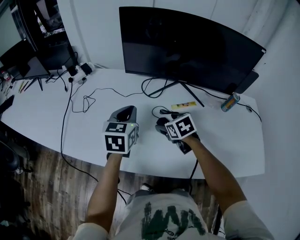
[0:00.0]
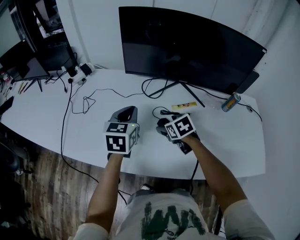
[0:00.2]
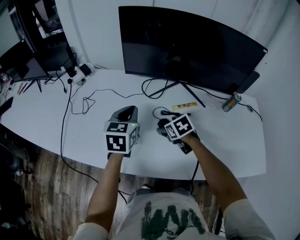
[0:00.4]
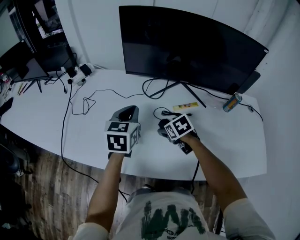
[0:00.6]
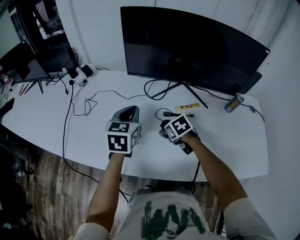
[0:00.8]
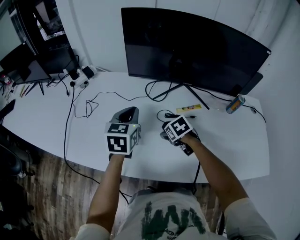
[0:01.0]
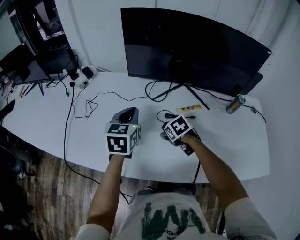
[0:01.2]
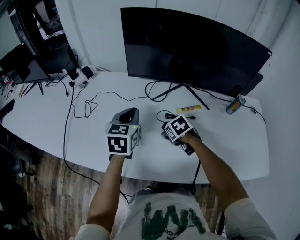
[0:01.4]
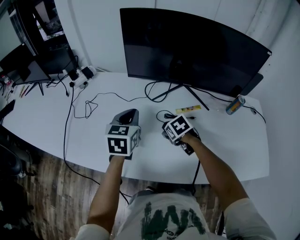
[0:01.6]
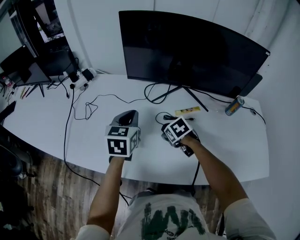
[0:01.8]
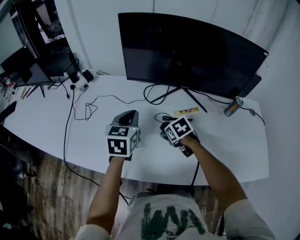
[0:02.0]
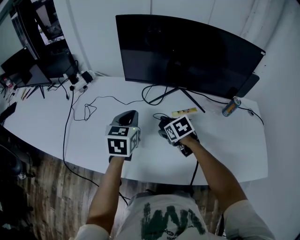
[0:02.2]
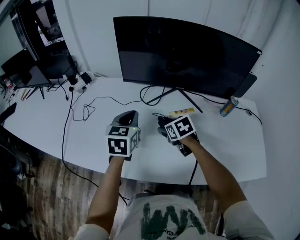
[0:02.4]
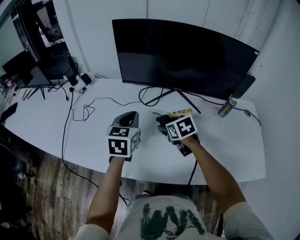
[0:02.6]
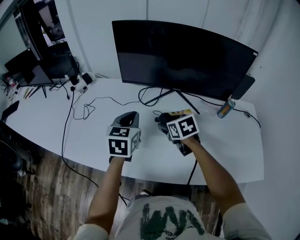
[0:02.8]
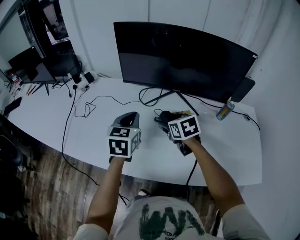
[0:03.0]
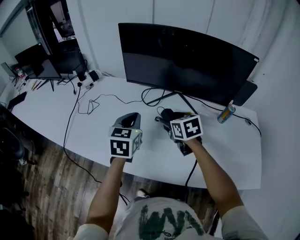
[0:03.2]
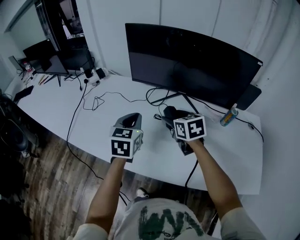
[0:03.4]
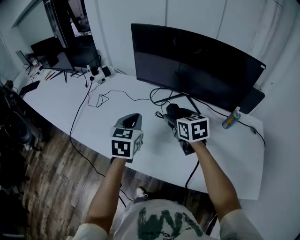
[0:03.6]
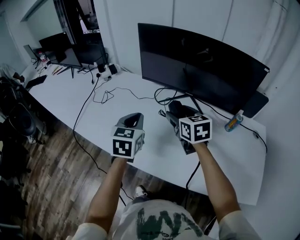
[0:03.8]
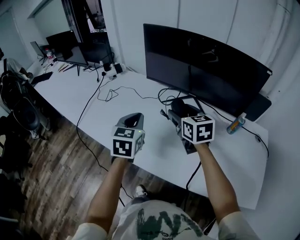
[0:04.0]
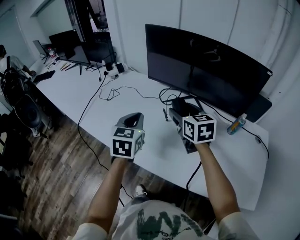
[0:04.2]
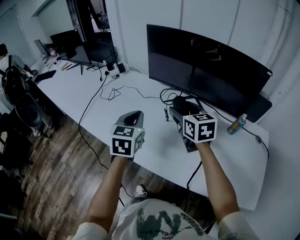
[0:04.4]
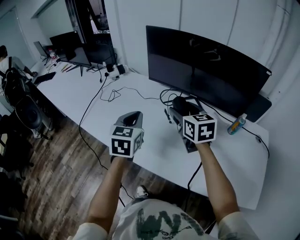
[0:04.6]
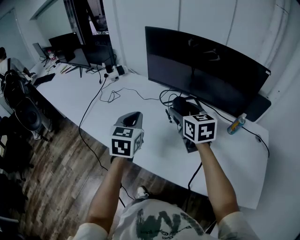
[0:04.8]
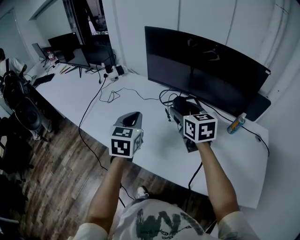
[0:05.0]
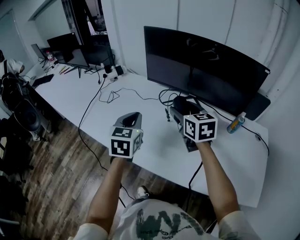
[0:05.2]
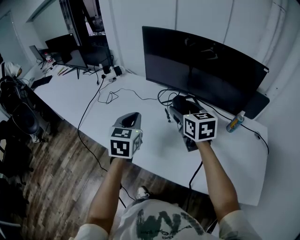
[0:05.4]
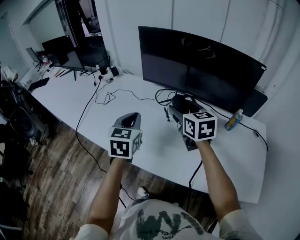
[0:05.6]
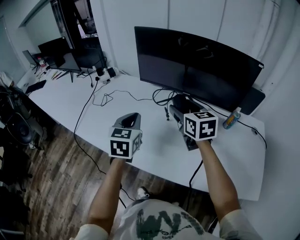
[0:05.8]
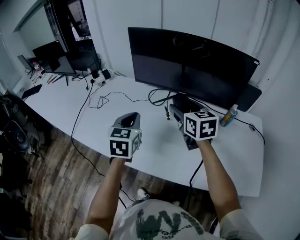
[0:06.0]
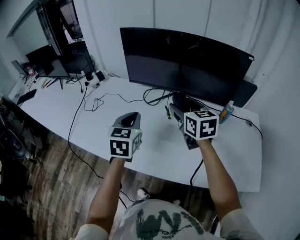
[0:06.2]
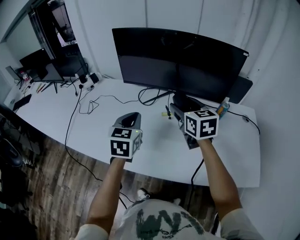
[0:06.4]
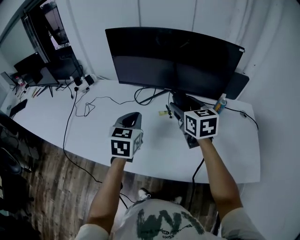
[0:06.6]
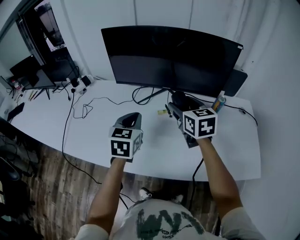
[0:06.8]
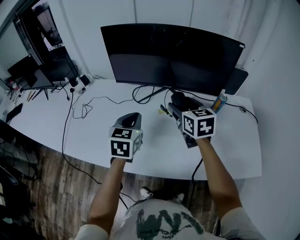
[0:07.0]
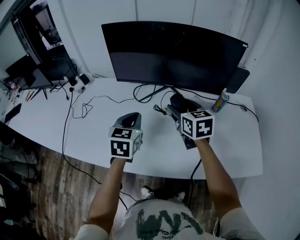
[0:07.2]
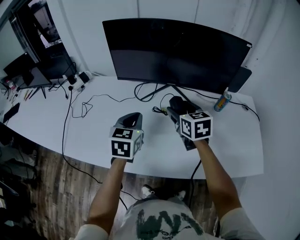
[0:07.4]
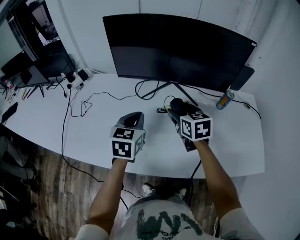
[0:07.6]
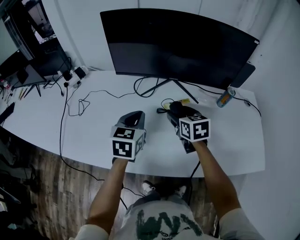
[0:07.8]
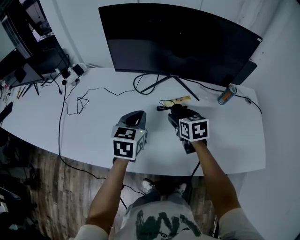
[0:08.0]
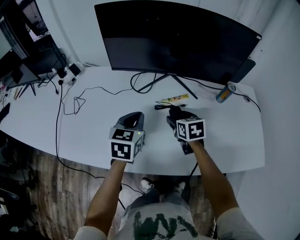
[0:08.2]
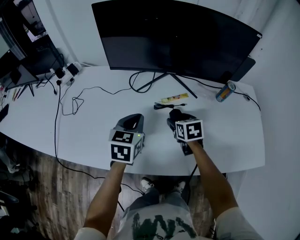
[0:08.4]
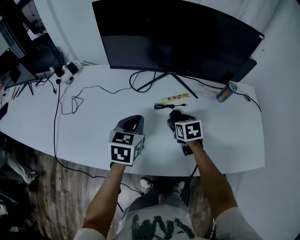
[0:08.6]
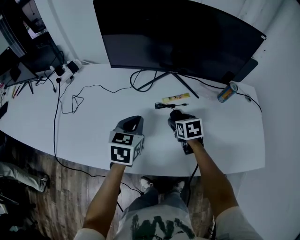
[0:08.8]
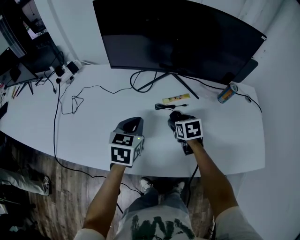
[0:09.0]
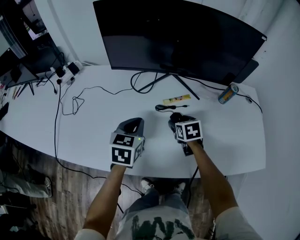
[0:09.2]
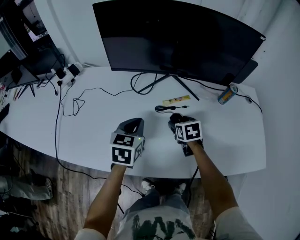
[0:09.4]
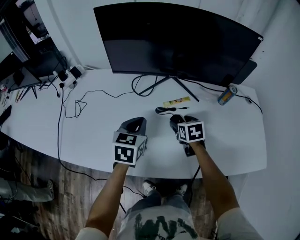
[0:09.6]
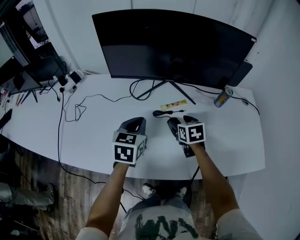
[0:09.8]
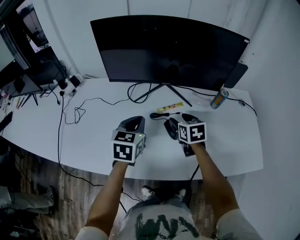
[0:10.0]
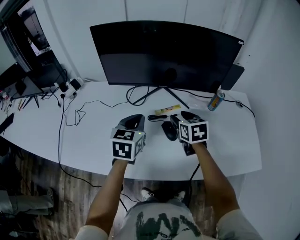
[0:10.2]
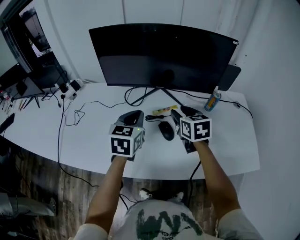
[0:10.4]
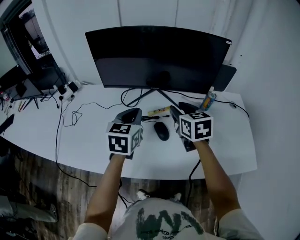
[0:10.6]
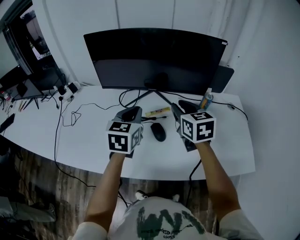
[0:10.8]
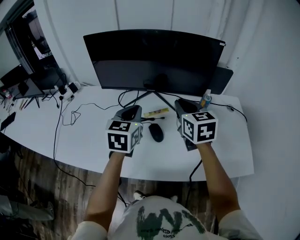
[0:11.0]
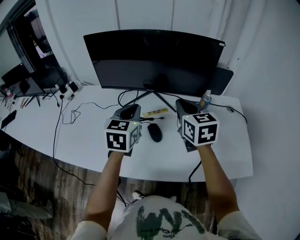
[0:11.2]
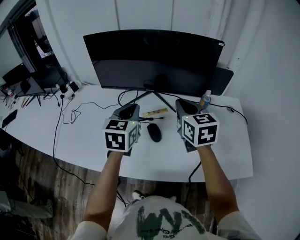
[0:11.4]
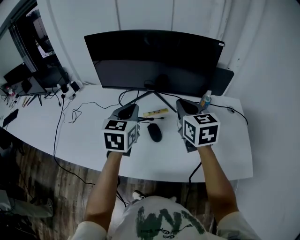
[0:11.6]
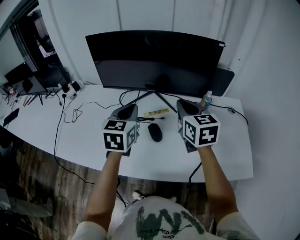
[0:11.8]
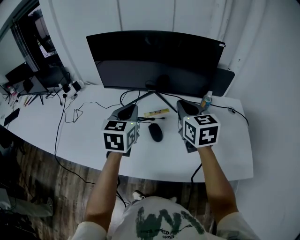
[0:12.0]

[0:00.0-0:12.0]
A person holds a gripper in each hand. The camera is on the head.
0:00.0 to 0:01.6: The right gripper travels downward by about 5 cm.
0:01.6 to 0:03.0: The left gripper shifts by about 10 cm; the right gripper shifts some 15 cm upward, and swivels approximately 30 degrees.
0:03.0 to 0:04.4: The right gripper shifts about 15 cm upward, and turns by roughly 20 degrees, while the left gripper is displaced backward by about 10 cm.
0:04.4 to 0:06.0: The grippers move only a little.
0:06.0 to 0:07.6: The right gripper travels downward by roughly 10 cm. Meanwhile the left gripper heads downward, covering some 5 cm.
0:07.6 to 0:09.0: The left gripper heads downward, covering approximately 5 cm. The right gripper heads downward, covering approximately 15 cm, and turns by roughly 20 degrees.
0:09.0 to 0:10.4: The left gripper heads upward, covering some 10 cm. The right gripper moves upward, about 20 cm, and changes its angle by about 20 degrees.
0:10.4 to 0:12.0: The right gripper travels upward and to the right by about 10 cm, and closes its fingers. Meanwhile the left gripper is displaced upward by approximately 5 cm.

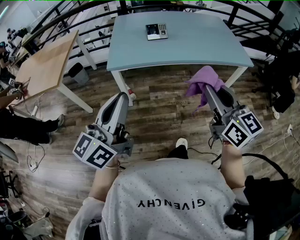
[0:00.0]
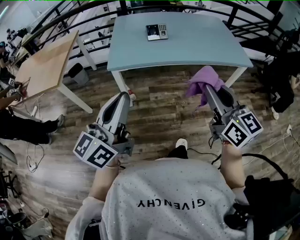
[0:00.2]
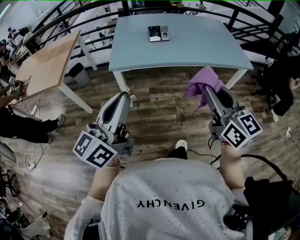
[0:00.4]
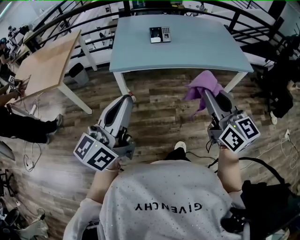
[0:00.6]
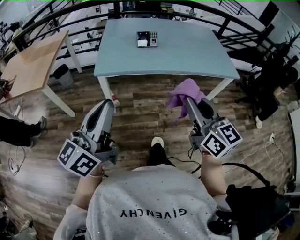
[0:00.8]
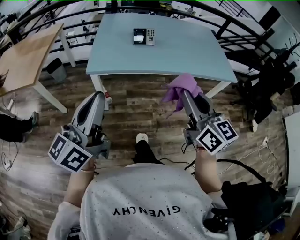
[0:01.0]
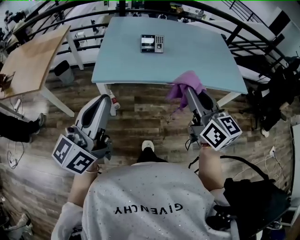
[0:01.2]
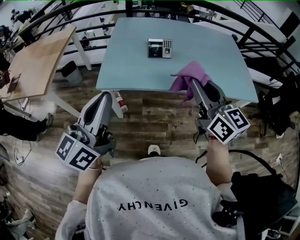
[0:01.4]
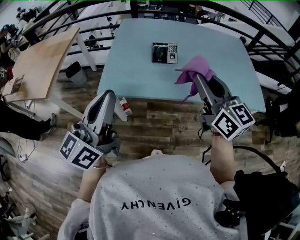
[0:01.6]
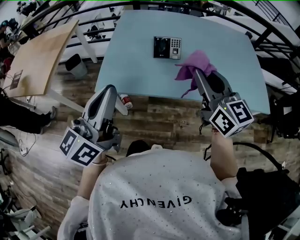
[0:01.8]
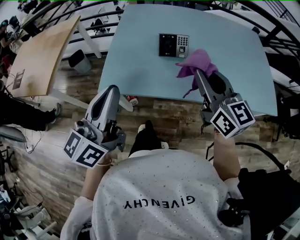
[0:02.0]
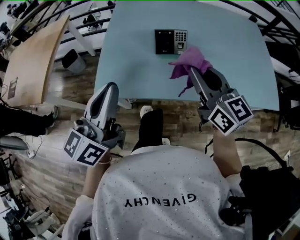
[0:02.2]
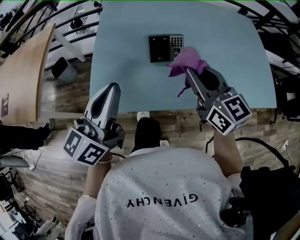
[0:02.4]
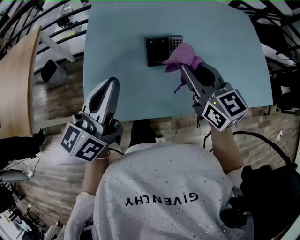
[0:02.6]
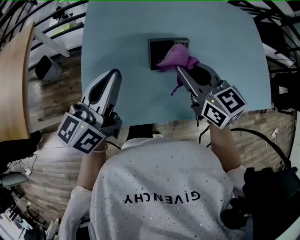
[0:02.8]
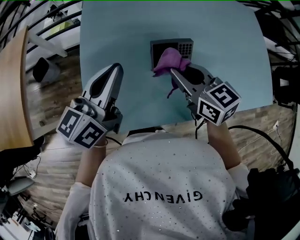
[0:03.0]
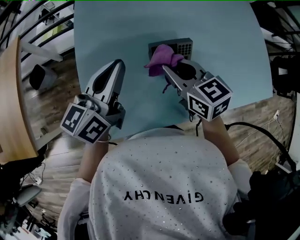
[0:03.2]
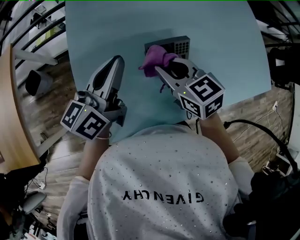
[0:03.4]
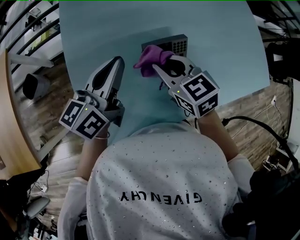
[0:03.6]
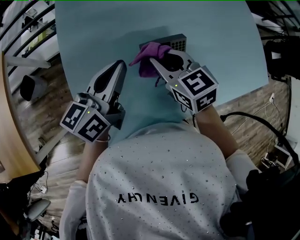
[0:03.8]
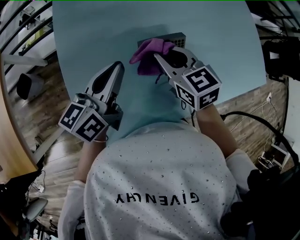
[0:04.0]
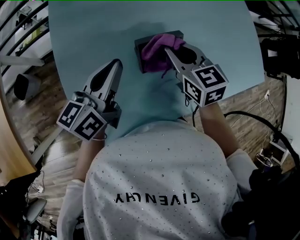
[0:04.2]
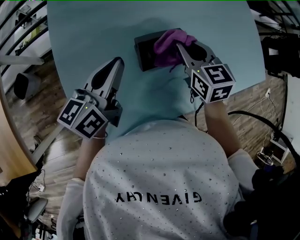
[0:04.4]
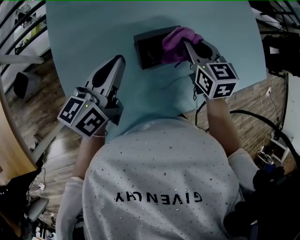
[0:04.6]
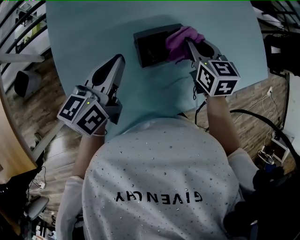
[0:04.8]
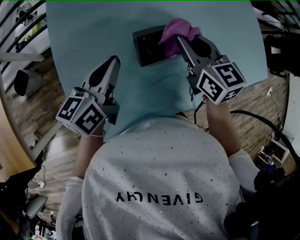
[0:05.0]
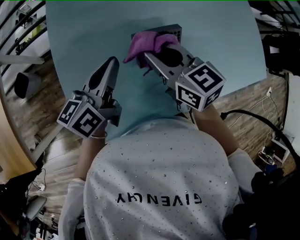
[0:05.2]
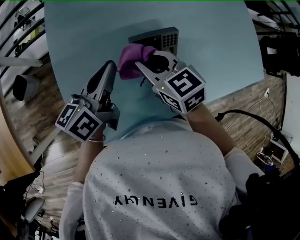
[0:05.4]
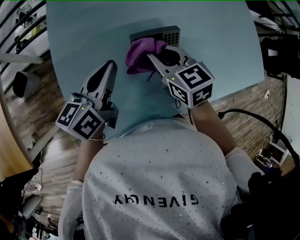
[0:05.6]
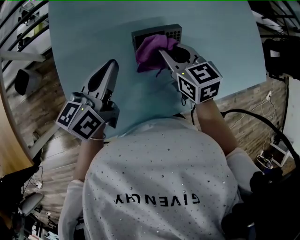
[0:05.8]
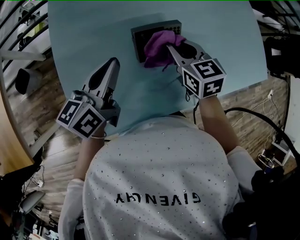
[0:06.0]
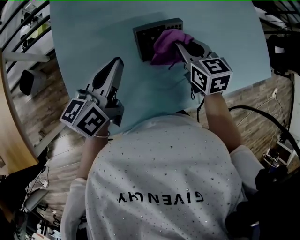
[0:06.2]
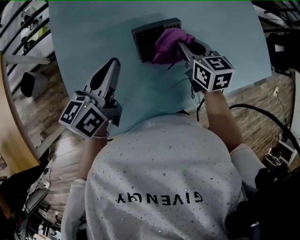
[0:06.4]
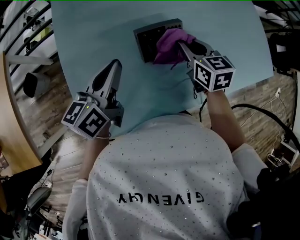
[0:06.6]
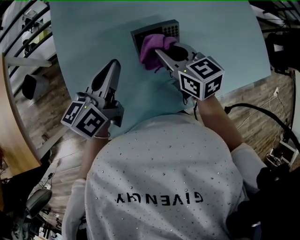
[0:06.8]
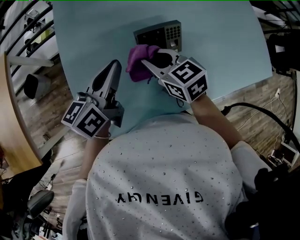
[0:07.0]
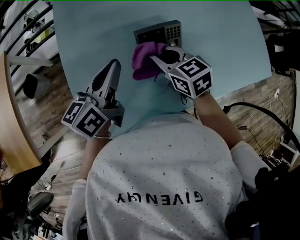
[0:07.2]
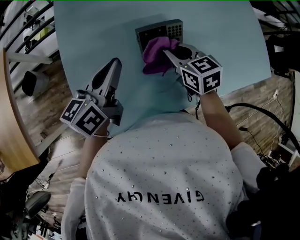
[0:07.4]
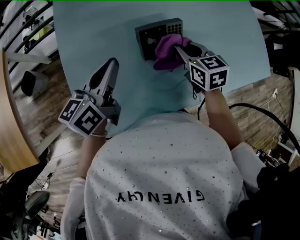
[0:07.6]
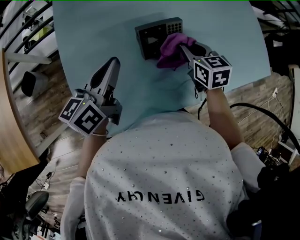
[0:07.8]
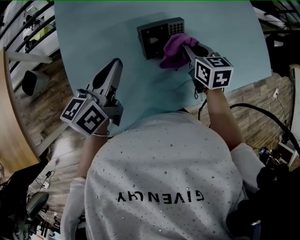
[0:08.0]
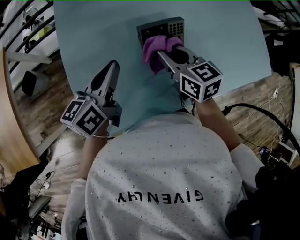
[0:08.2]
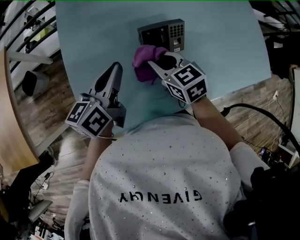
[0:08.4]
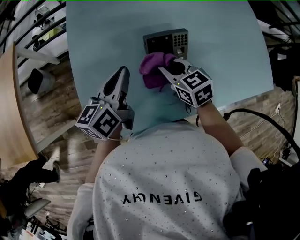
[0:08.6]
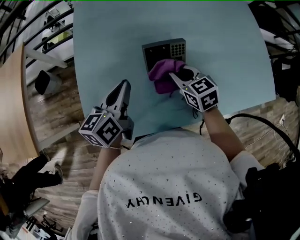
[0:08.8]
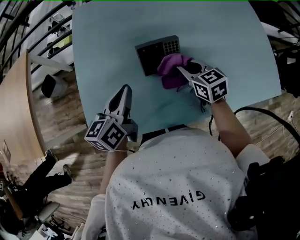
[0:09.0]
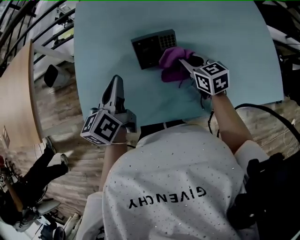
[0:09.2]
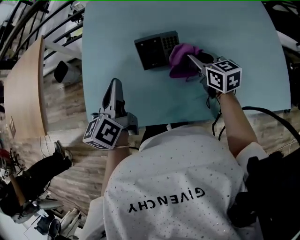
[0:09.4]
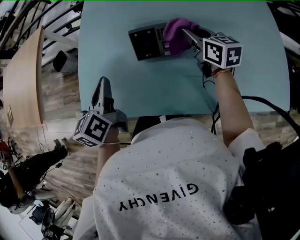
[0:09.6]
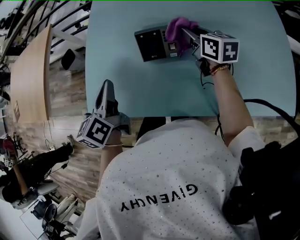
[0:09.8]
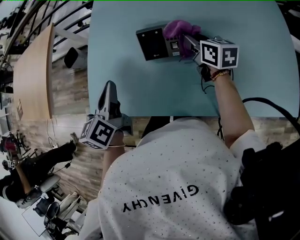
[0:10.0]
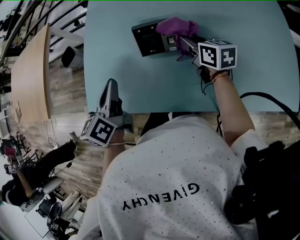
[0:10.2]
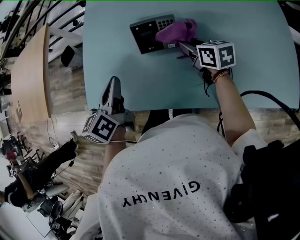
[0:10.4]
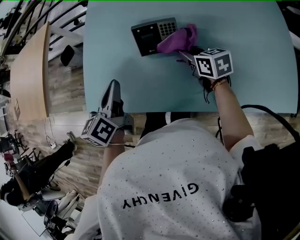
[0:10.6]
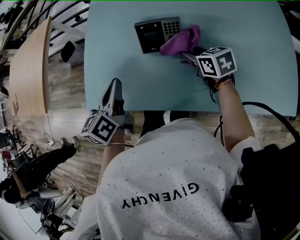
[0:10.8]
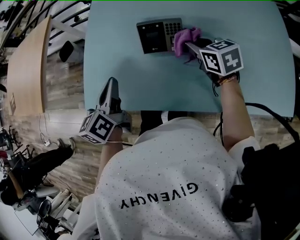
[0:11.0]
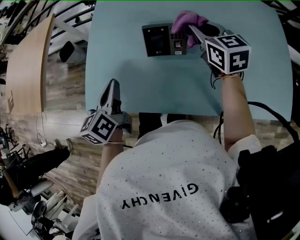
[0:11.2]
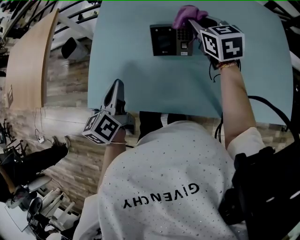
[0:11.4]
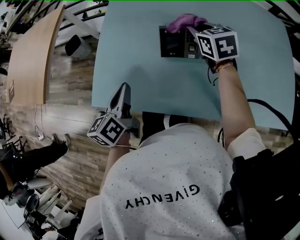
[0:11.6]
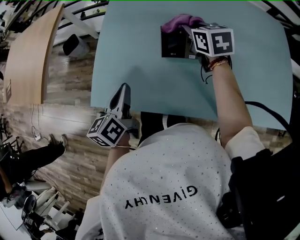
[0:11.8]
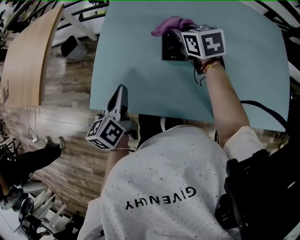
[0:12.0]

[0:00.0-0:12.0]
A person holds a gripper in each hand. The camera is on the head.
0:00.0 to 0:01.6: Both grippers move forward, approximately 30 cm.
0:01.6 to 0:03.0: The right gripper heads forward and downward, covering roughly 35 cm, and rotates approximately 30 degrees, while the left gripper travels forward by approximately 40 cm, and swivels approximately 20 degrees.
0:03.0 to 0:04.4: The right gripper moves forward and to the right, about 10 cm, and turns by approximately 30 degrees. Meanwhile the left gripper moves downward and forward, roughly 10 cm.
0:04.4 to 0:06.0: The right gripper swings left and right, some 15 cm each way, with 2 reversals.
0:06.0 to 0:07.6: The right gripper goes left and right, approximately 15 cm each way, reversing 2 times.
0:07.6 to 0:09.0: The left gripper changes place by roughly 5 cm; the right gripper moves roughly 10 cm to the left and comes back.
0:09.0 to 0:10.4: The right gripper reaches approximately 5 cm forward, then returns, and changes its angle by some 20 degrees; the left gripper shifts approximately 5 cm backward, and rotates about 20 degrees.
0:10.4 to 0:12.0: The right gripper goes approximately 15 cm forward, to the left and upward, and turns by approximately 20 degrees. Meanwhile the left gripper shifts about 5 cm to the left.
